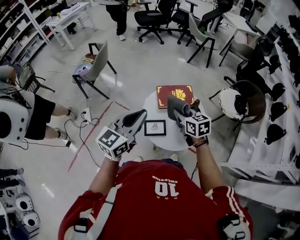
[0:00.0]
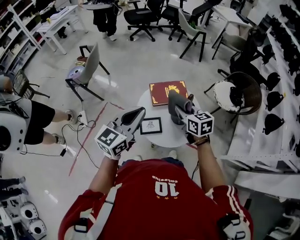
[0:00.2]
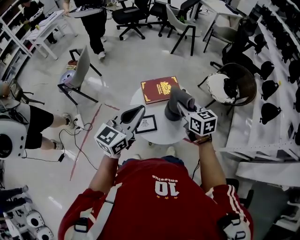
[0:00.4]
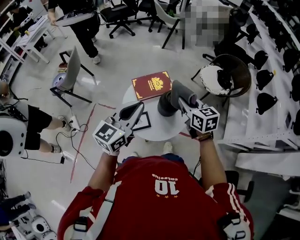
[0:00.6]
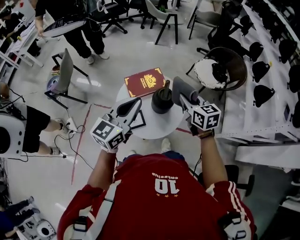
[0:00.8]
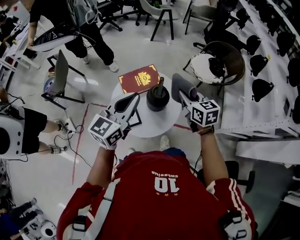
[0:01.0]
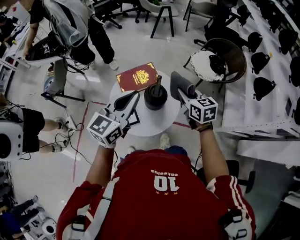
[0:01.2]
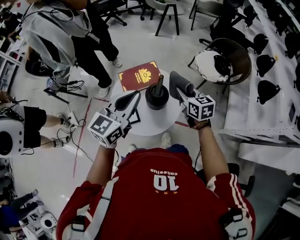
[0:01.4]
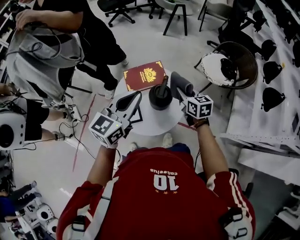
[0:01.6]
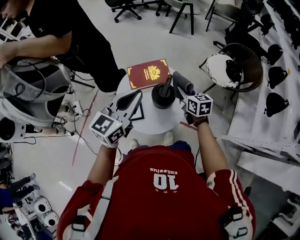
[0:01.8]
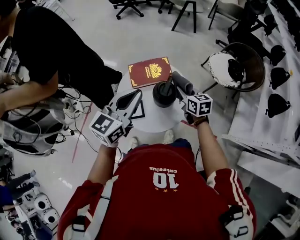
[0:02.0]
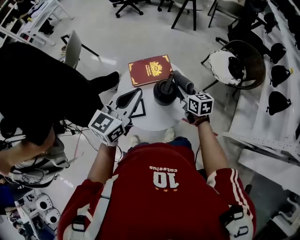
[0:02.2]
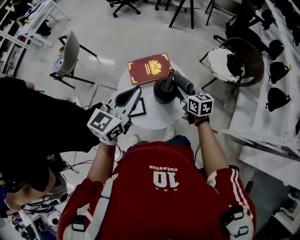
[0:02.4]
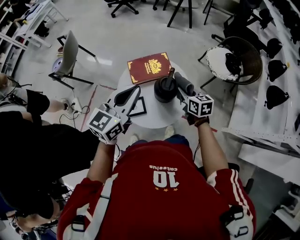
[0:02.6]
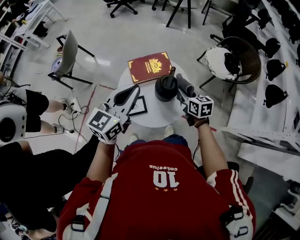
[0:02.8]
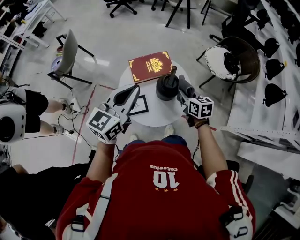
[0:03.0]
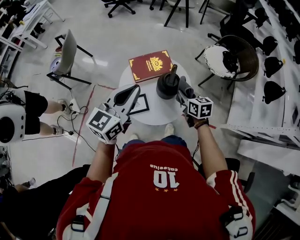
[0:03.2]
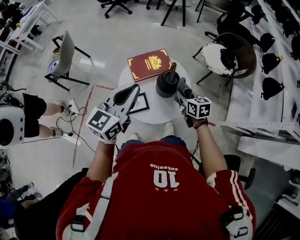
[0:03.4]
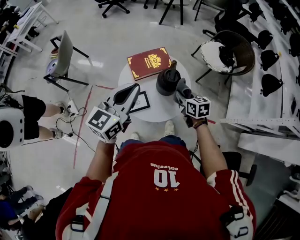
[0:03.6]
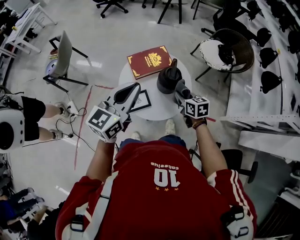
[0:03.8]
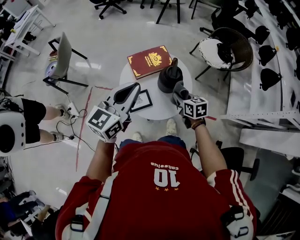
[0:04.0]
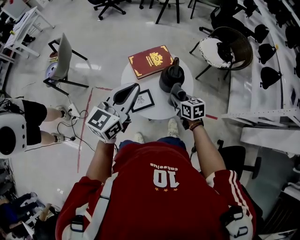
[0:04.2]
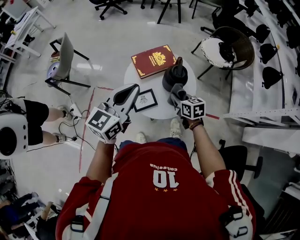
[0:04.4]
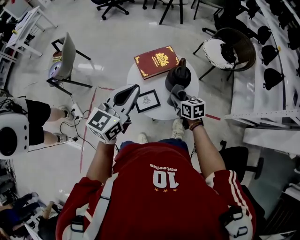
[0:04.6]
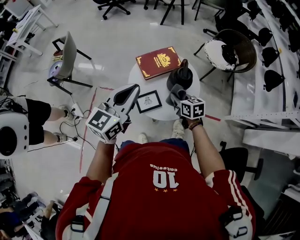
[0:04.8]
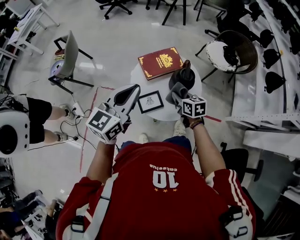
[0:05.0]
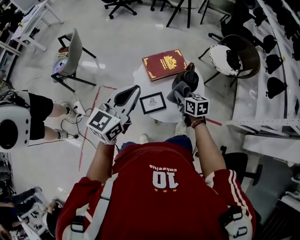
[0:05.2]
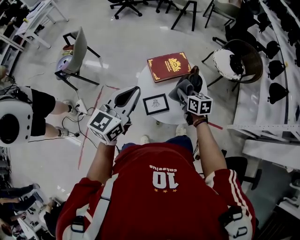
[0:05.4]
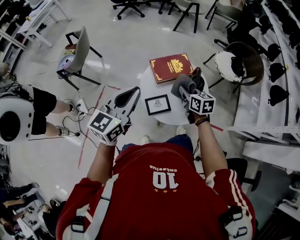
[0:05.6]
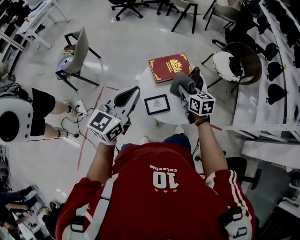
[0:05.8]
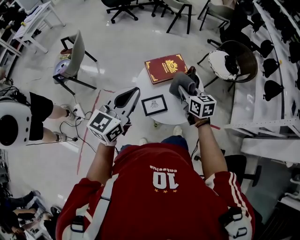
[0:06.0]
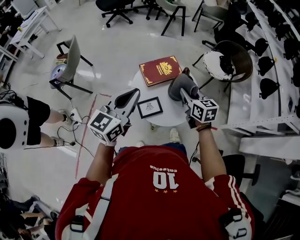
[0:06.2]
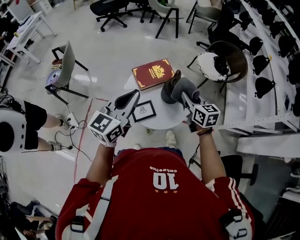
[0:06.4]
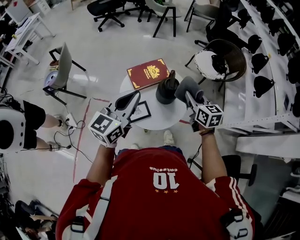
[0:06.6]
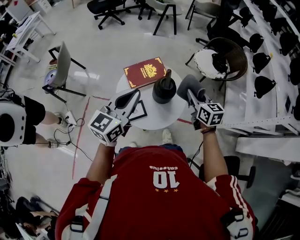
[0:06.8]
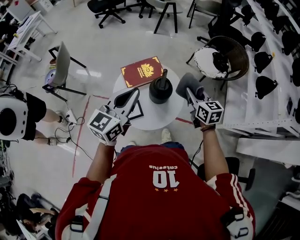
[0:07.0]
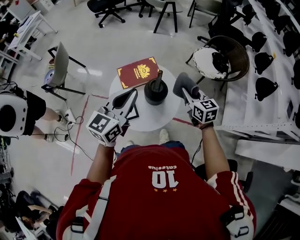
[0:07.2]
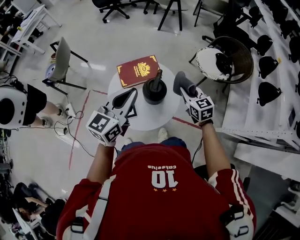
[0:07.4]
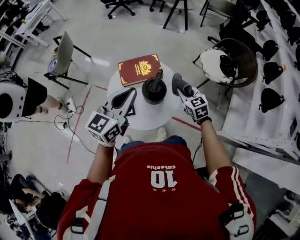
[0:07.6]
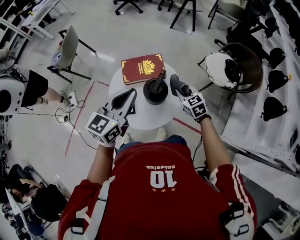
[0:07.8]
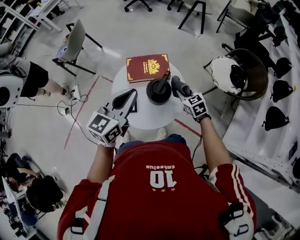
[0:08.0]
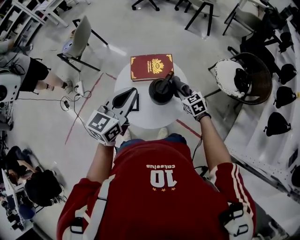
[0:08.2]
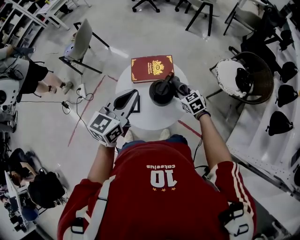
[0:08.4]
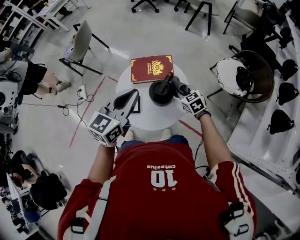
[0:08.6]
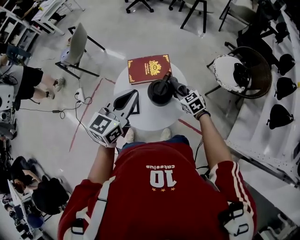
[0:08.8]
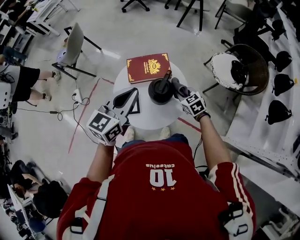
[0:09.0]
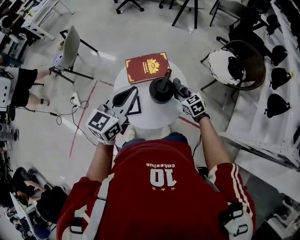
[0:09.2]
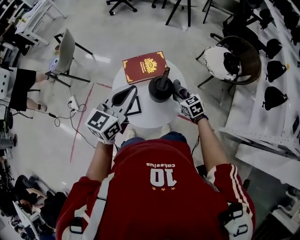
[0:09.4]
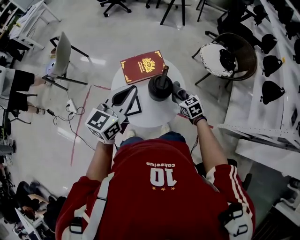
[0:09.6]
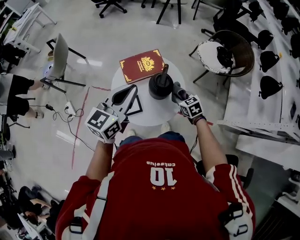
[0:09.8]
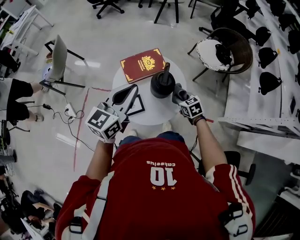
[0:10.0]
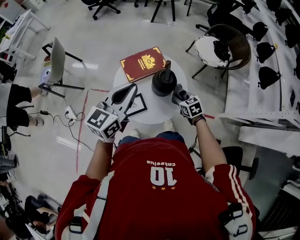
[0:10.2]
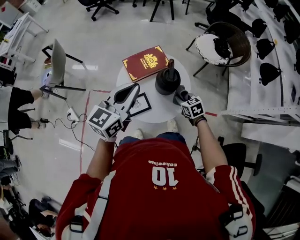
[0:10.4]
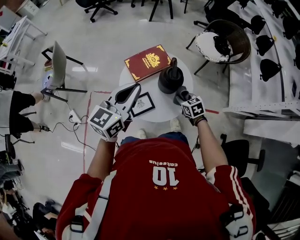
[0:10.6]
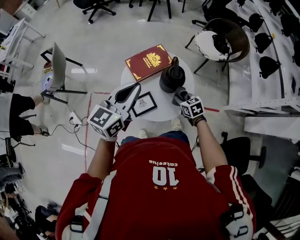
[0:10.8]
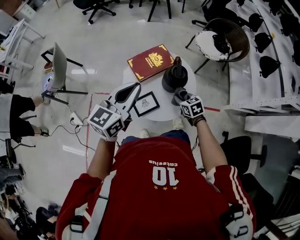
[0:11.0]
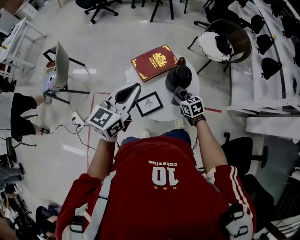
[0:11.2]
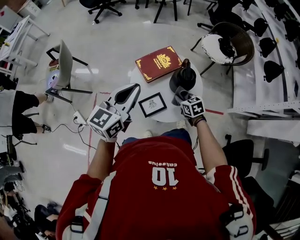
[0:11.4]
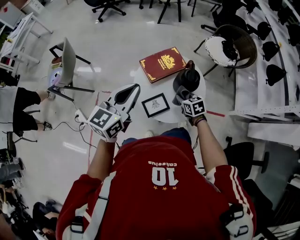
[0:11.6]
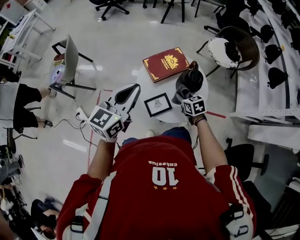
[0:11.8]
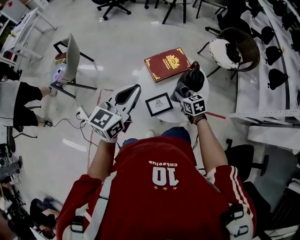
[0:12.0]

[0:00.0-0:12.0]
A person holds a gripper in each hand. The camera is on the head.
0:00.0 to 0:01.6: The left gripper moves to the right and forward, approximately 20 cm, while the right gripper moves to the right, some 20 cm.
0:01.6 to 0:03.0: The right gripper changes place by approximately 10 cm; the left gripper travels to the left by about 5 cm.
0:03.0 to 0:04.4: The left gripper is displaced to the left by approximately 5 cm. Meanwhile the right gripper heads to the left and backward, covering approximately 10 cm.
0:04.4 to 0:06.0: The left gripper is displaced to the left by roughly 10 cm, while the right gripper heads upward and to the left, covering roughly 10 cm.
0:06.0 to 0:07.6: The two grippers go some 25 cm to the right and forward. The right gripper rotates some 20 degrees.
0:07.6 to 0:09.0: The right gripper heads downward, covering about 10 cm.
0:09.0 to 0:10.4: The right gripper moves backward, roughly 10 cm, and changes its angle by about 30 degrees. The left gripper shifts roughly 10 cm to the left.
0:10.4 to 0:12.0: The two grippers go some 15 cm to the left.

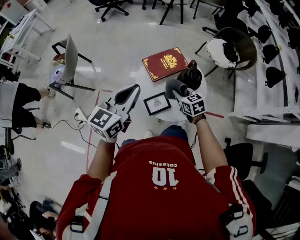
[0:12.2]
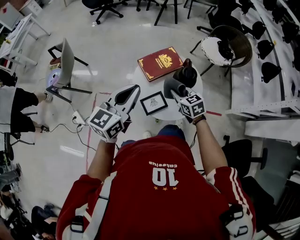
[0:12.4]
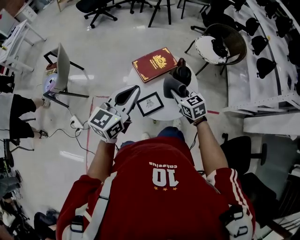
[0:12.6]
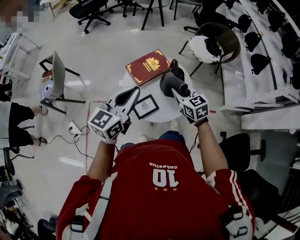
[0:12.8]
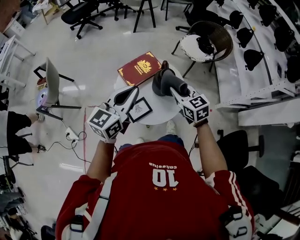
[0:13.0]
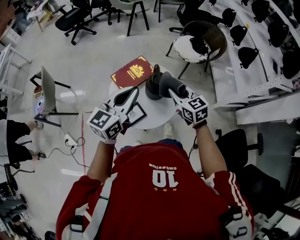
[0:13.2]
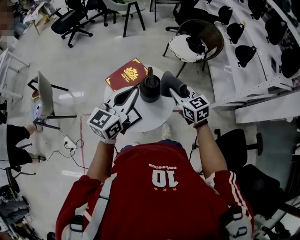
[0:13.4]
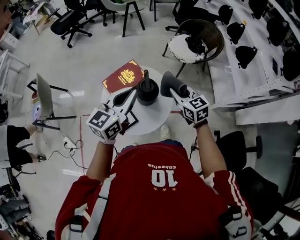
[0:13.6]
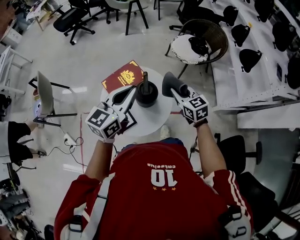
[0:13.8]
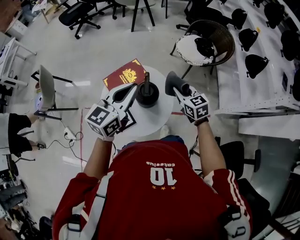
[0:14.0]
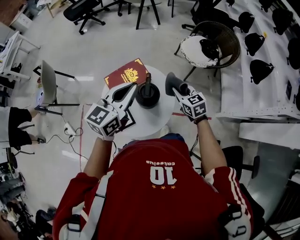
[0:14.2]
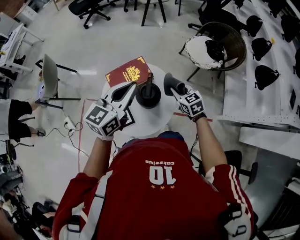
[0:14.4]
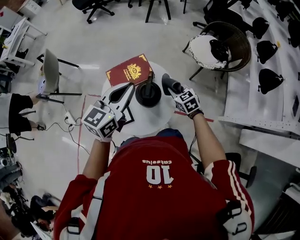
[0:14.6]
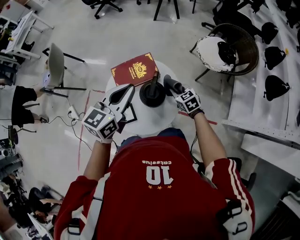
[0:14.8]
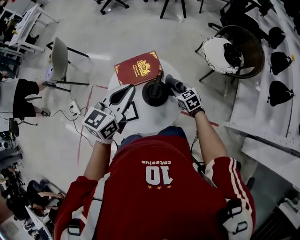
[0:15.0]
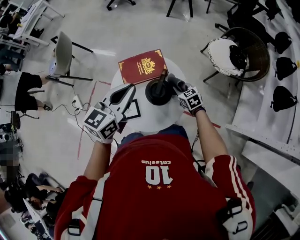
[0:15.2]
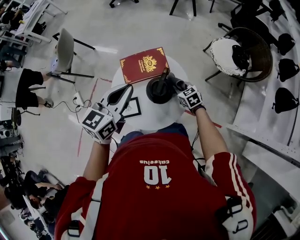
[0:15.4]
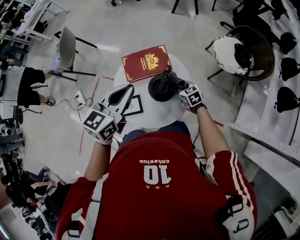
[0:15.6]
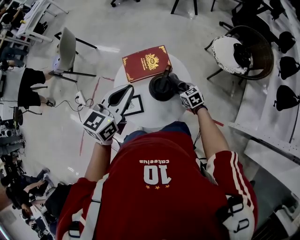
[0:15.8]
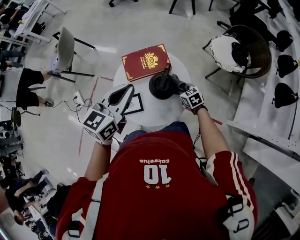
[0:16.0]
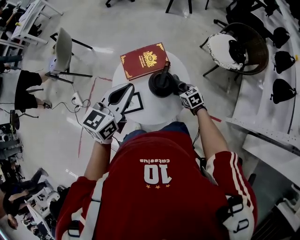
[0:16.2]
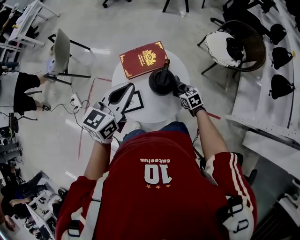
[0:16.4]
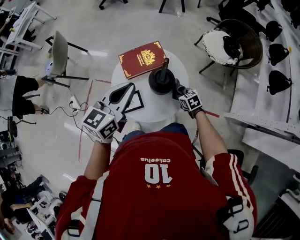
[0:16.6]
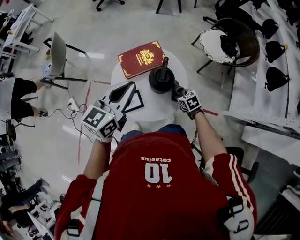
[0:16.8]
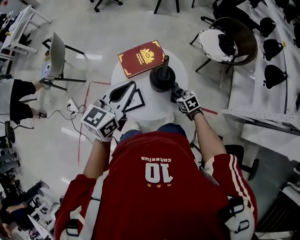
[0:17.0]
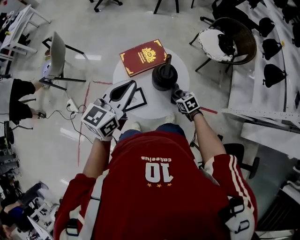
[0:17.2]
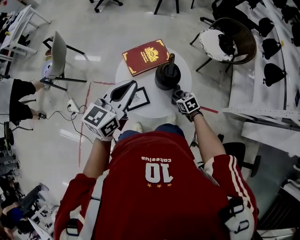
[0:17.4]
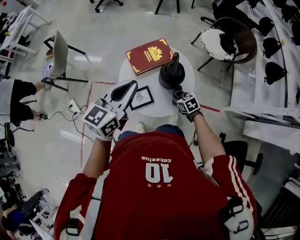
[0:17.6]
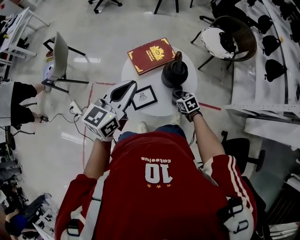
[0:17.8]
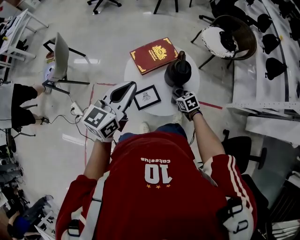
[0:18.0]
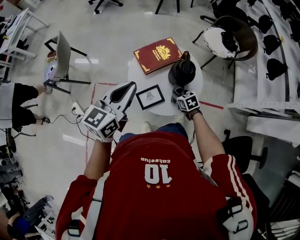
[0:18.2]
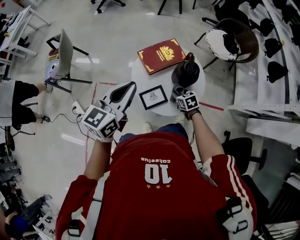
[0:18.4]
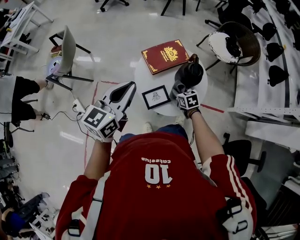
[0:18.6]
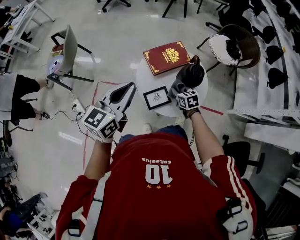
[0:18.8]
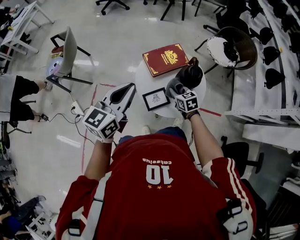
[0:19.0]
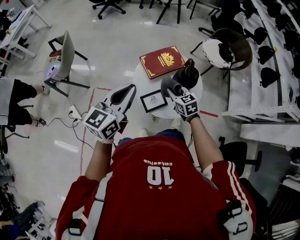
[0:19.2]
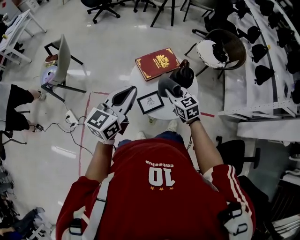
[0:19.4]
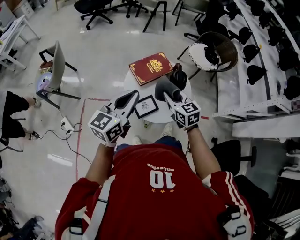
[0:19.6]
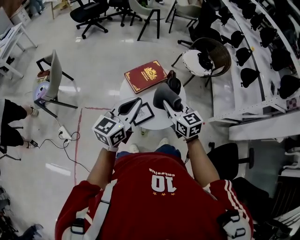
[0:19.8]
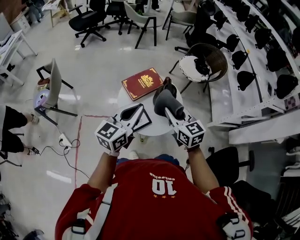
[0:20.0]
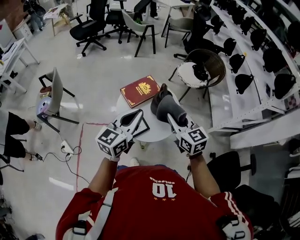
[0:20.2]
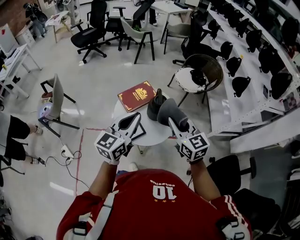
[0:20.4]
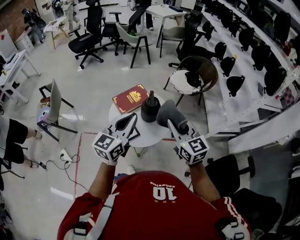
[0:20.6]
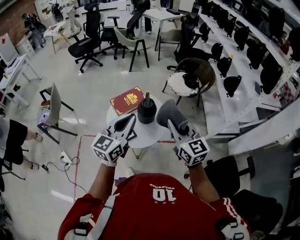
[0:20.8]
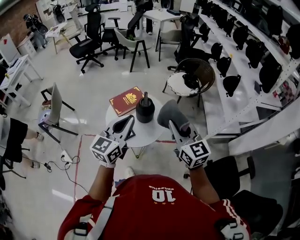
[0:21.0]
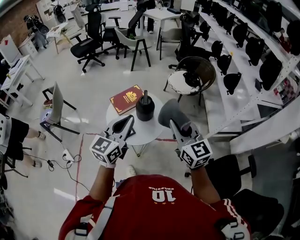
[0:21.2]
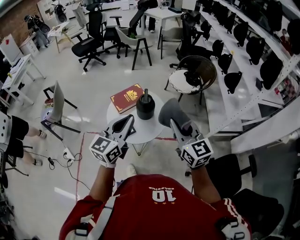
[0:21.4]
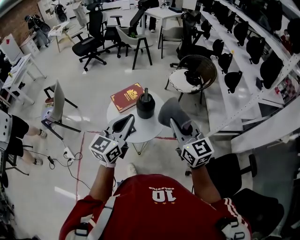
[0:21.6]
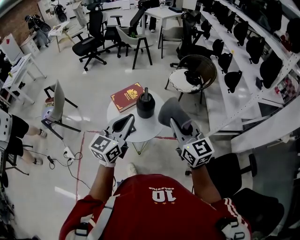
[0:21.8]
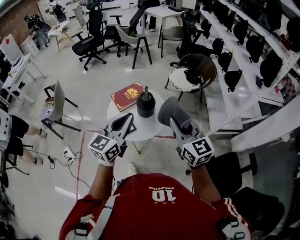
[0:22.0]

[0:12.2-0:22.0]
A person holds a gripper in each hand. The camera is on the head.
0:12.2 to 0:13.6: The left gripper moves to the right, approximately 20 cm, while the right gripper is displaced to the right and upward by about 25 cm.
0:13.6 to 0:15.0: The left gripper shifts some 5 cm forward, and swivels about 20 degrees; the right gripper shifts roughly 25 cm downward and forward, and changes its angle by some 30 degrees.
0:15.0 to 0:16.4: The left gripper moves approximately 5 cm, while the right gripper moves backward, roughly 5 cm.
0:16.4 to 0:17.8: The left gripper travels to the left by roughly 10 cm. The right gripper travels to the left and backward by approximately 15 cm.
0:17.8 to 0:19.2: The left gripper heads to the left, covering some 10 cm, while the right gripper is displaced upward and to the left by approximately 20 cm, and swivels about 20 degrees.
0:19.2 to 0:20.6: The left gripper moves to the right, some 15 cm. The right gripper is displaced upward, to the right and backward by roughly 35 cm, and rotates some 30 degrees.
0:20.6 to 0:22.0: The left gripper shifts some 10 cm backward and to the right, while the right gripper heads to the right and backward, covering roughly 10 cm.

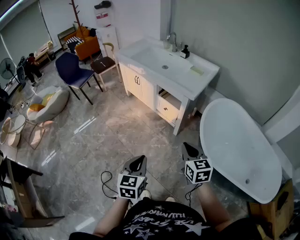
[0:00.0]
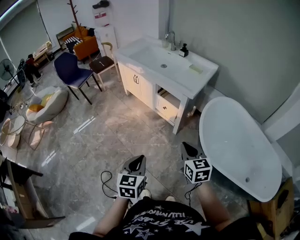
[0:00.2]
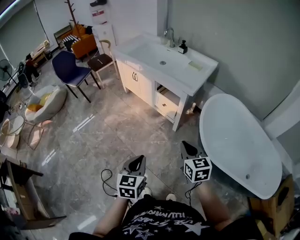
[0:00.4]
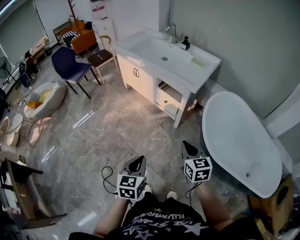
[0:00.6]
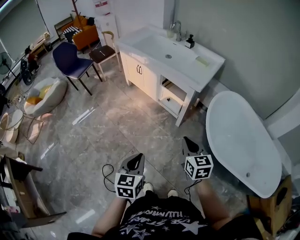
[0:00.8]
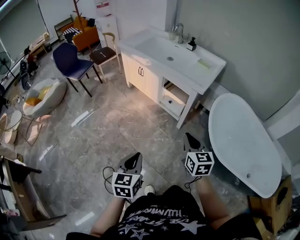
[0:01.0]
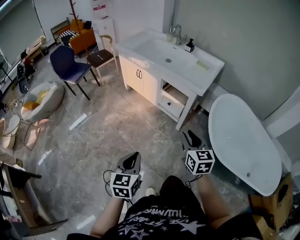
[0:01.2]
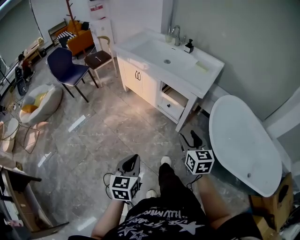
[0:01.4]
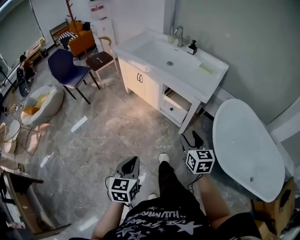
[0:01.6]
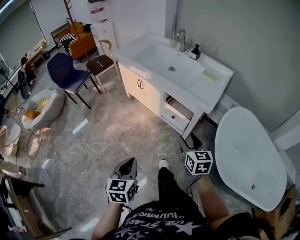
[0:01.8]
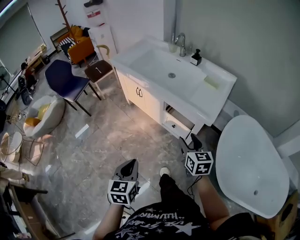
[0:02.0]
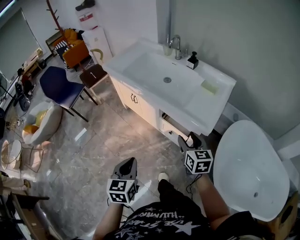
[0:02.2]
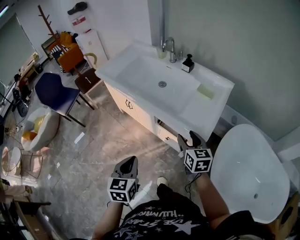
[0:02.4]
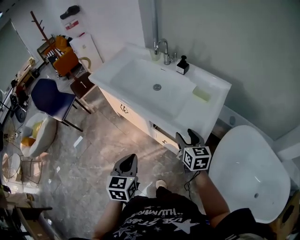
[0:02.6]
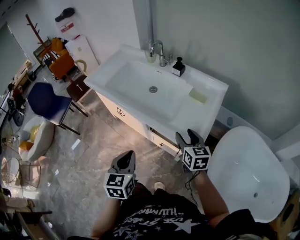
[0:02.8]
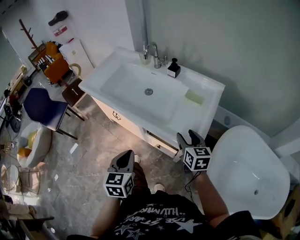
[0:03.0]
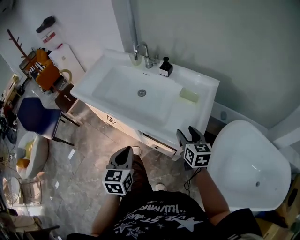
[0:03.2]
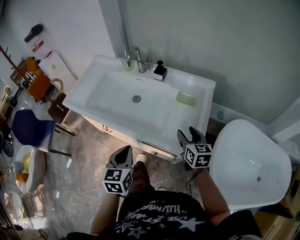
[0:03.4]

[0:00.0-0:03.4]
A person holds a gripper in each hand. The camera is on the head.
0:00.0 to 0:01.6: The left gripper heads to the left and forward, covering some 15 cm; the right gripper goes some 15 cm forward and to the left, and opens up.
0:01.6 to 0:03.4: Both grippers are carried forward, about 50 cm. The right gripper swivels about 20 degrees.
